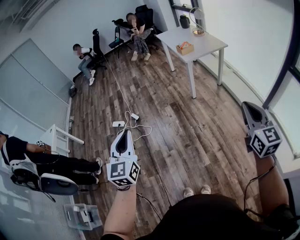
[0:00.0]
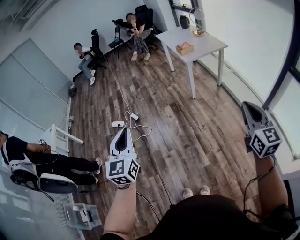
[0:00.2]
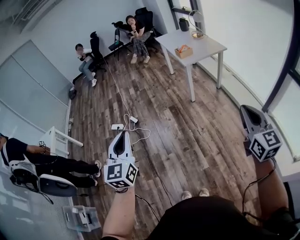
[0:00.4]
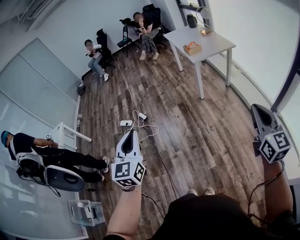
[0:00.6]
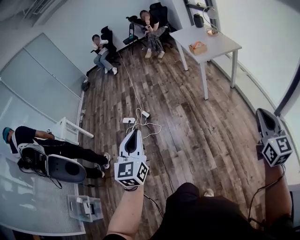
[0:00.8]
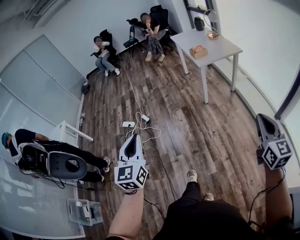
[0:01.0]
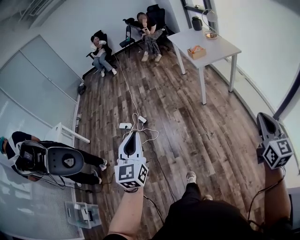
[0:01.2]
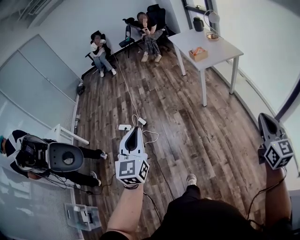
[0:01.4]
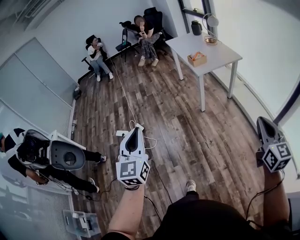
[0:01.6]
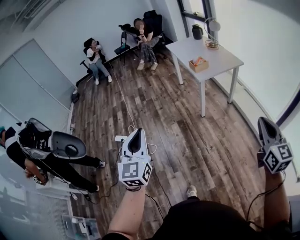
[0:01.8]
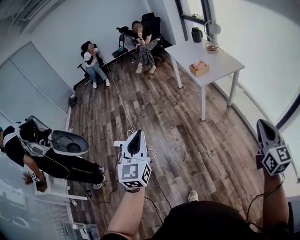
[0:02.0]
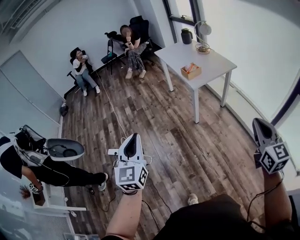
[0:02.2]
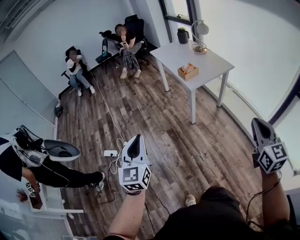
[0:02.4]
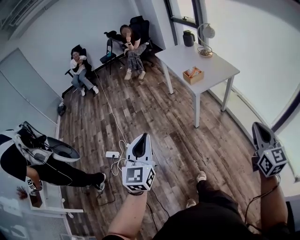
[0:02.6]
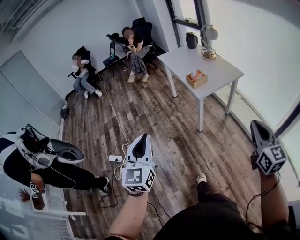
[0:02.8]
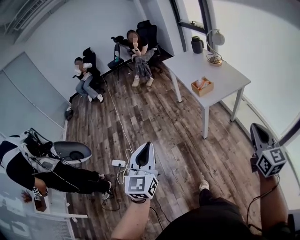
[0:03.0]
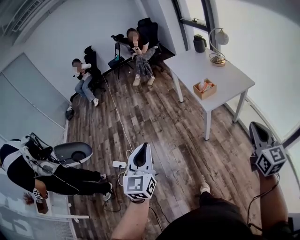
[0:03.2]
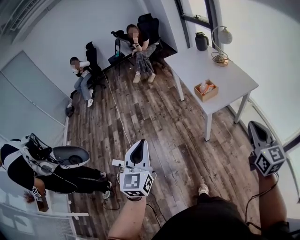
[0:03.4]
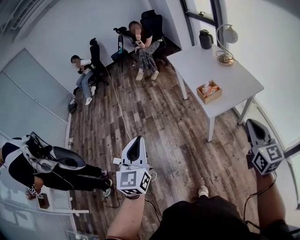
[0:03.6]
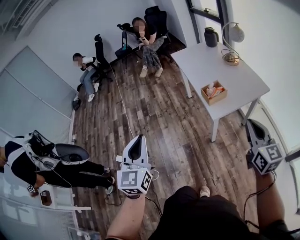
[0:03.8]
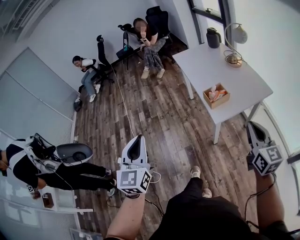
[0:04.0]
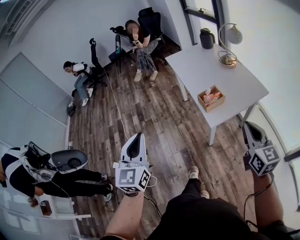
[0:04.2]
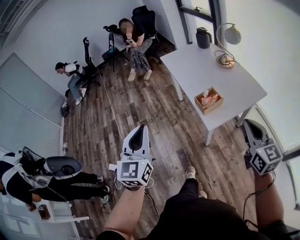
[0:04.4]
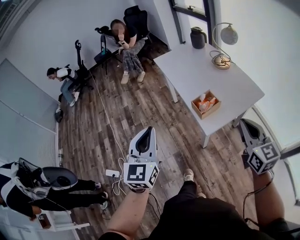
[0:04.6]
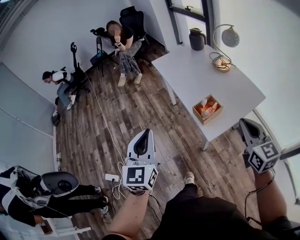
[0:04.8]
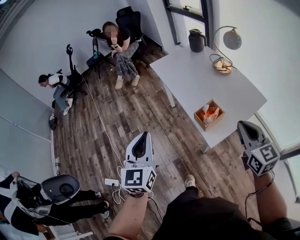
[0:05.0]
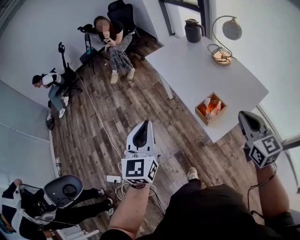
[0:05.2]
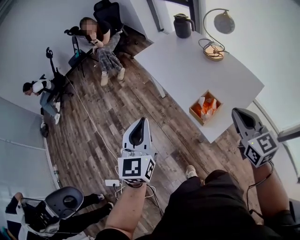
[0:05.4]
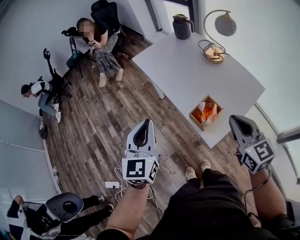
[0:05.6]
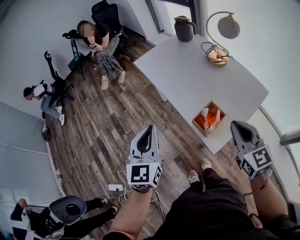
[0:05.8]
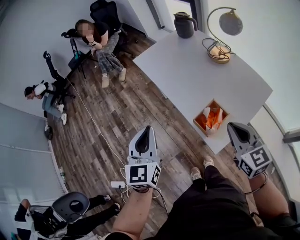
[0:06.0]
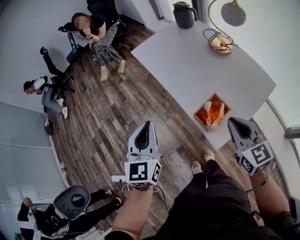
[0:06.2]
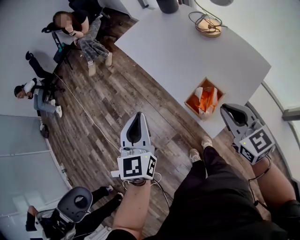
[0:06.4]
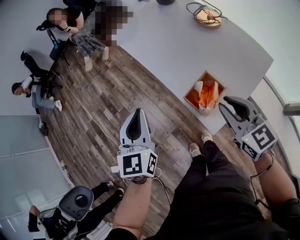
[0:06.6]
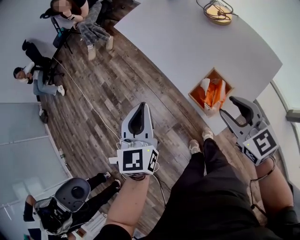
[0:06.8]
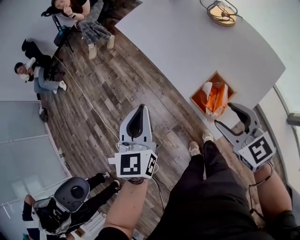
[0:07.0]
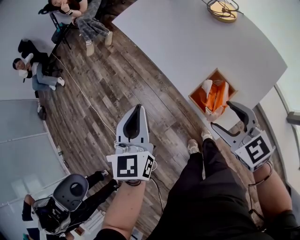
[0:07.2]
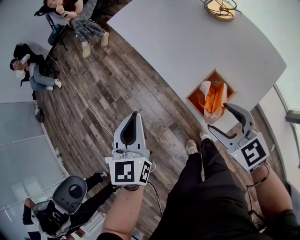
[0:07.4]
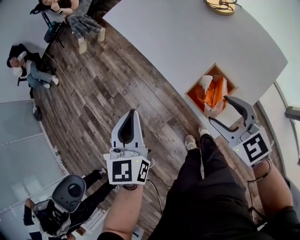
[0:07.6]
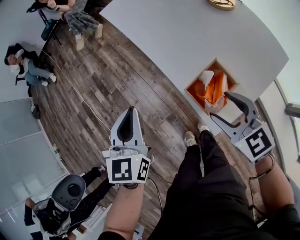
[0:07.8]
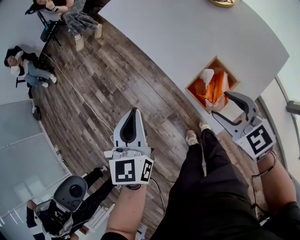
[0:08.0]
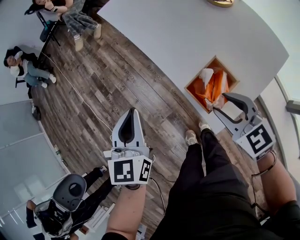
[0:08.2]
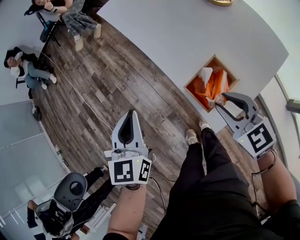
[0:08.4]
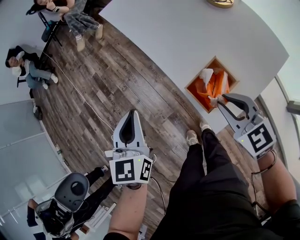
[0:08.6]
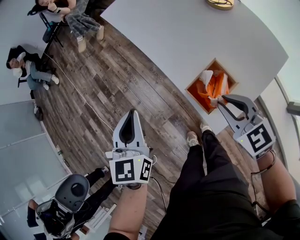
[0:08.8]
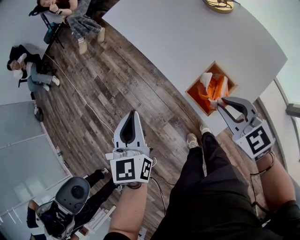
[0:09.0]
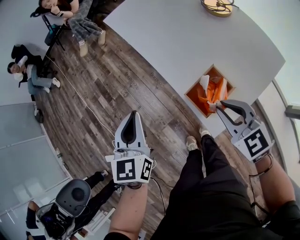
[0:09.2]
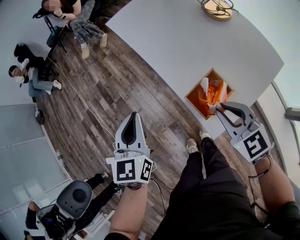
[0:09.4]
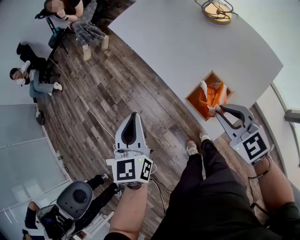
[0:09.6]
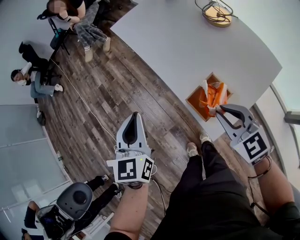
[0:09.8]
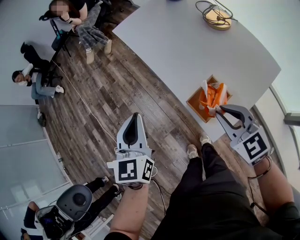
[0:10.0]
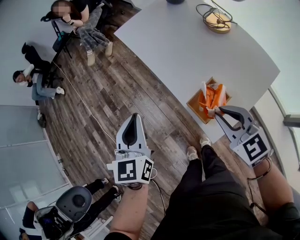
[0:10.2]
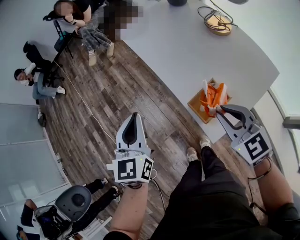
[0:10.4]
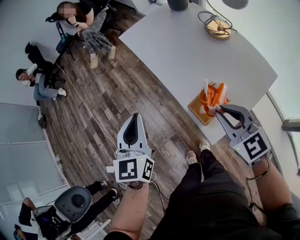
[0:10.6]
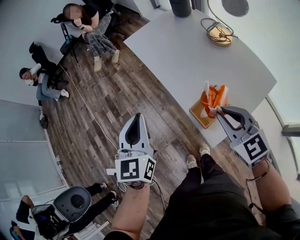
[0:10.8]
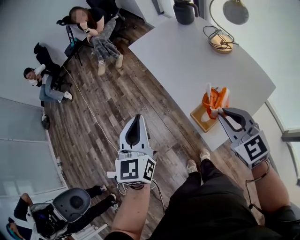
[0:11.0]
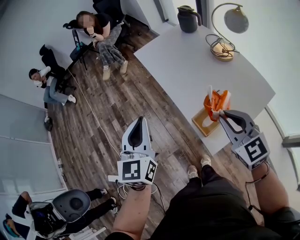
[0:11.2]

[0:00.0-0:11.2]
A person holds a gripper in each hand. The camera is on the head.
0:00.0 to 0:01.6: Both grippers travel together forward, about 15 cm.
0:01.6 to 0:03.2: The two grippers go some 35 cm forward.
0:03.2 to 0:04.8: Both grippers move forward, about 35 cm.
0:04.8 to 0:06.4: Both grippers move forward and downward, about 20 cm.
0:06.4 to 0:08.0: The grippers both shift downward by about 10 cm. The right gripper opens its fingers.
0:08.0 to 0:09.6: The right gripper closes its fingers.
0:09.6 to 0:11.2: The grippers both shift upward by about 15 cm.

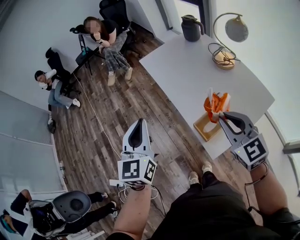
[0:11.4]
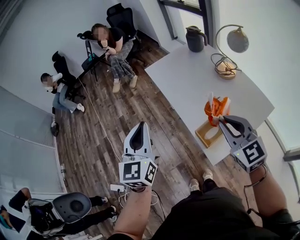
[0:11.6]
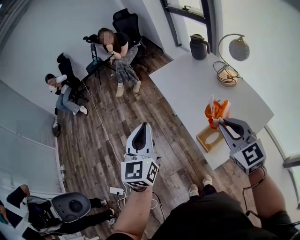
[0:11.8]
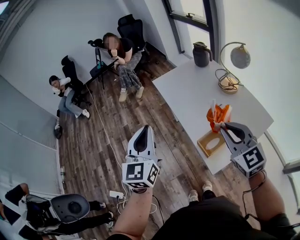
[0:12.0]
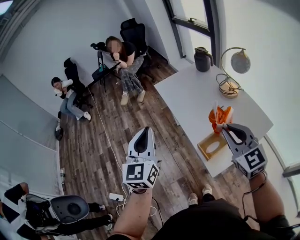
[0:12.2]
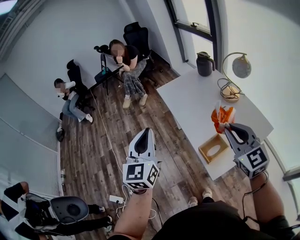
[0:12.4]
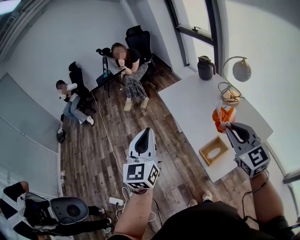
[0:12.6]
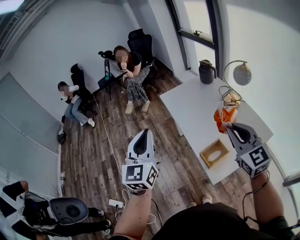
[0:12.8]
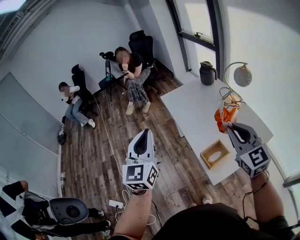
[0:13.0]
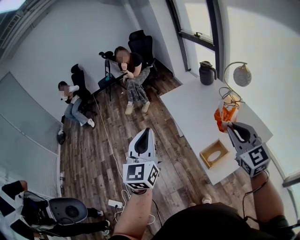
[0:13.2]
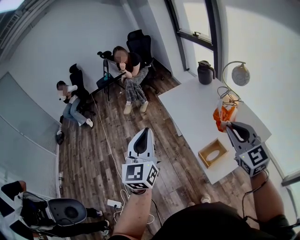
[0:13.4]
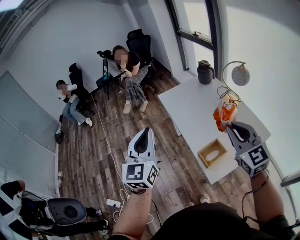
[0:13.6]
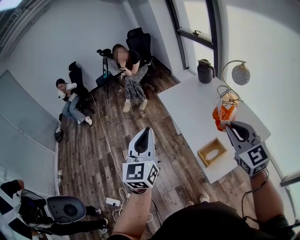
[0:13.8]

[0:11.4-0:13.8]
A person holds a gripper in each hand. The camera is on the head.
0:11.4 to 0:12.6: Both grippers move upward, about 10 cm.
0:12.6 to 0:13.8: The grippers stay close to where they were, moving slightly.

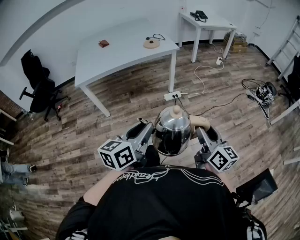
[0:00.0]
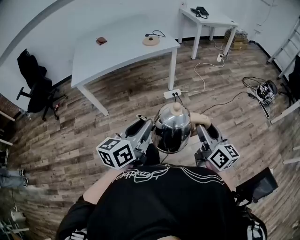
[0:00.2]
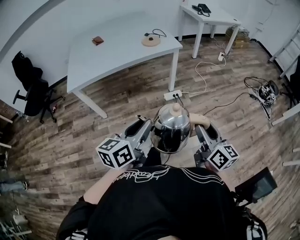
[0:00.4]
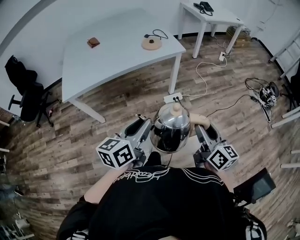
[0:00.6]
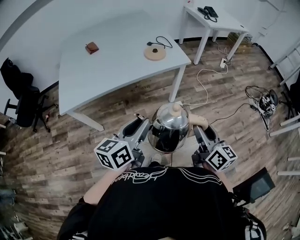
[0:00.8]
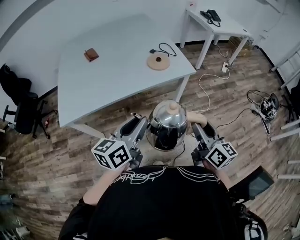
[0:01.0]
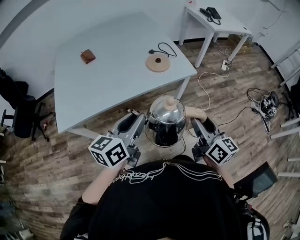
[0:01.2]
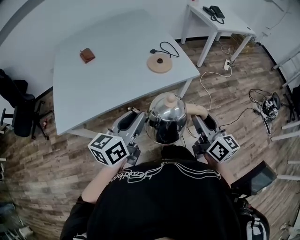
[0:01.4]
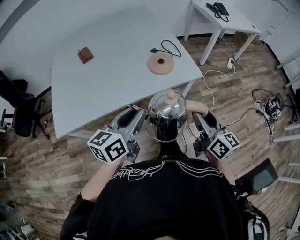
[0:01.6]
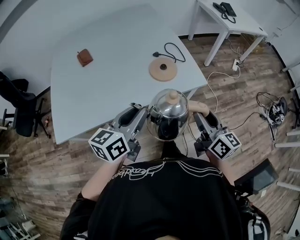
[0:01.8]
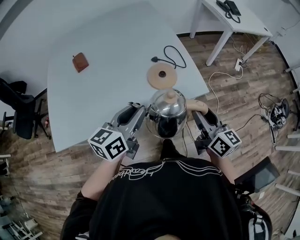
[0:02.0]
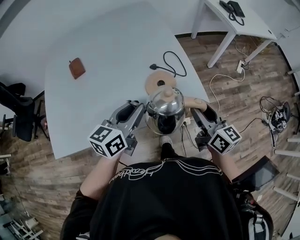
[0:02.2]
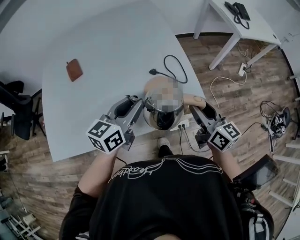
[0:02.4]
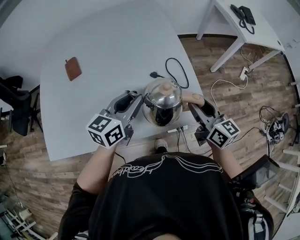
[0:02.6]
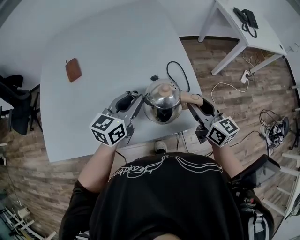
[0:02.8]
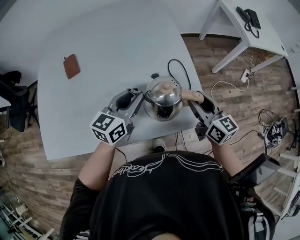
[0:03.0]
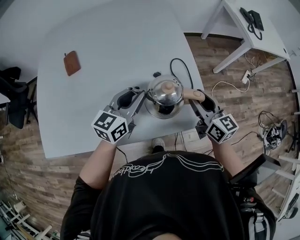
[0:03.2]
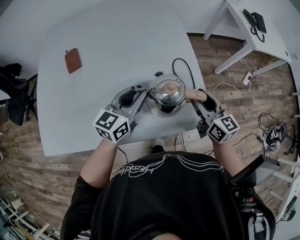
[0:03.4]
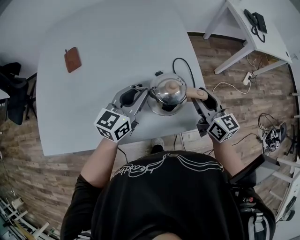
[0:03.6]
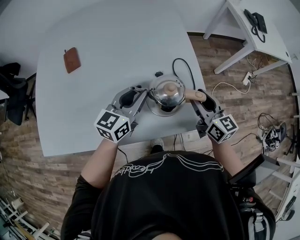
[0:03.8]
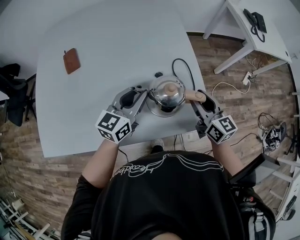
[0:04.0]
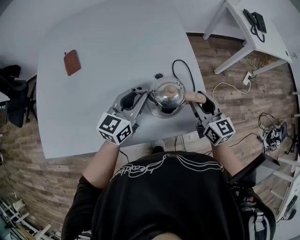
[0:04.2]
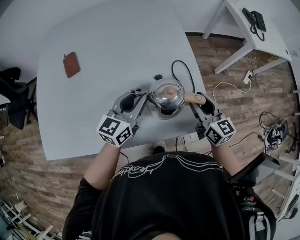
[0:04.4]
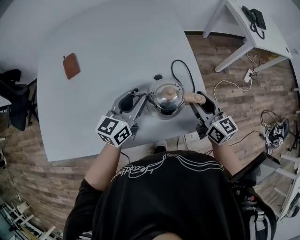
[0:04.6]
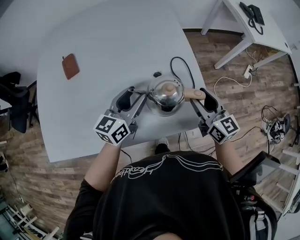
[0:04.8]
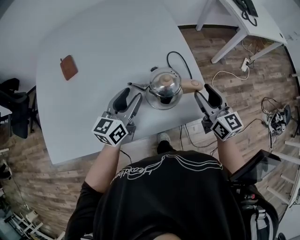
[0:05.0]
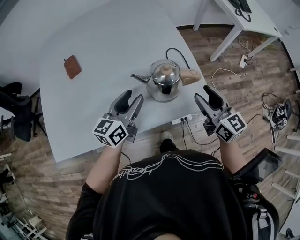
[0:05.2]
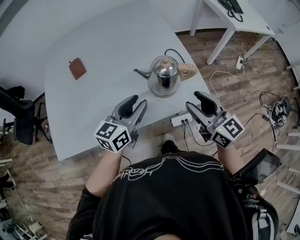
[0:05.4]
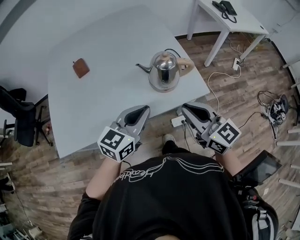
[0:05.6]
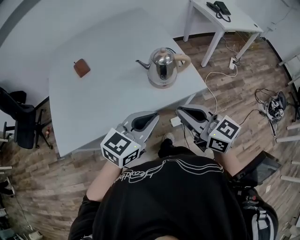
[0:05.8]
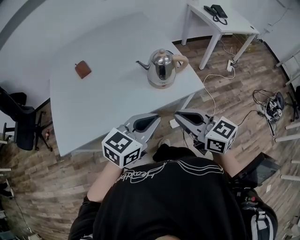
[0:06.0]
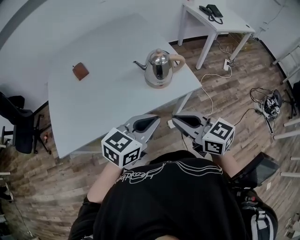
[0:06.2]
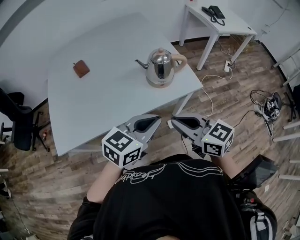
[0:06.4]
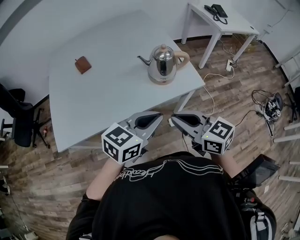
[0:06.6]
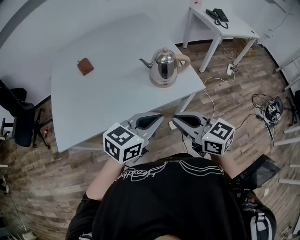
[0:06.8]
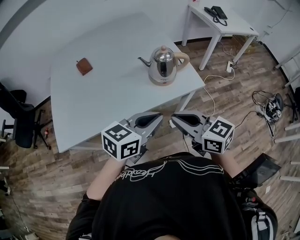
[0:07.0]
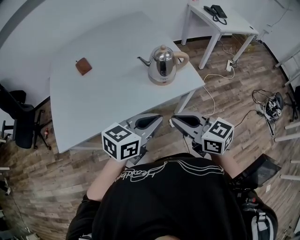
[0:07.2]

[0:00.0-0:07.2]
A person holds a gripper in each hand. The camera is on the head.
0:00.0 to 0:01.4: The two grippers travel together, forward, approximately 50 cm.
0:01.4 to 0:02.8: Both grippers move forward, some 35 cm. The right gripper turns by some 20 degrees.
0:02.8 to 0:04.4: The right gripper moves approximately 5 cm.
0:04.4 to 0:05.8: The right gripper heads backward, upward and to the left, covering some 30 cm, and closes. Meanwhile the left gripper goes approximately 25 cm backward, turns by roughly 30 degrees, and closes its fingers.
0:05.8 to 0:07.2: The right gripper shifts some 5 cm backward.

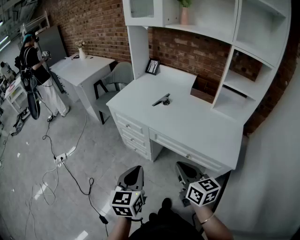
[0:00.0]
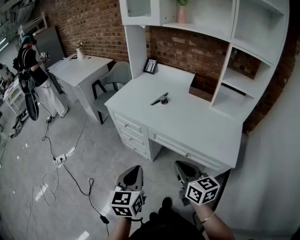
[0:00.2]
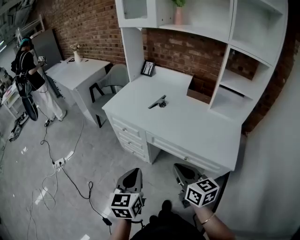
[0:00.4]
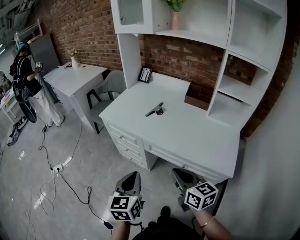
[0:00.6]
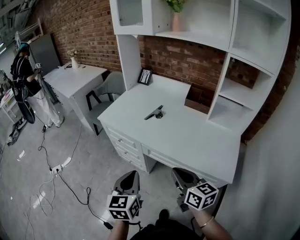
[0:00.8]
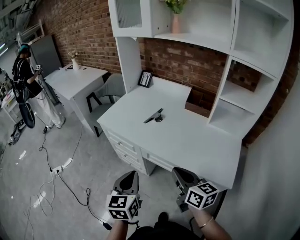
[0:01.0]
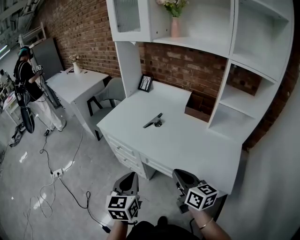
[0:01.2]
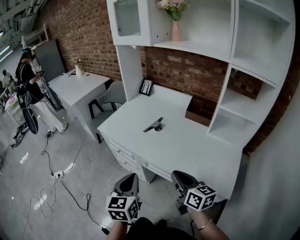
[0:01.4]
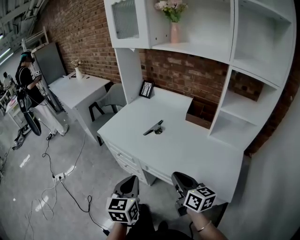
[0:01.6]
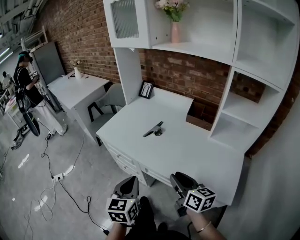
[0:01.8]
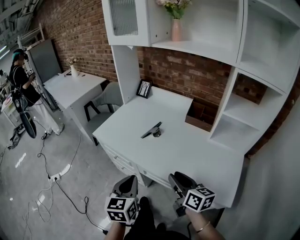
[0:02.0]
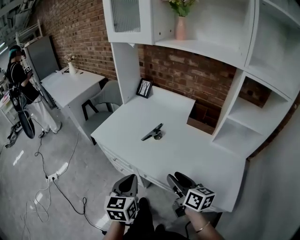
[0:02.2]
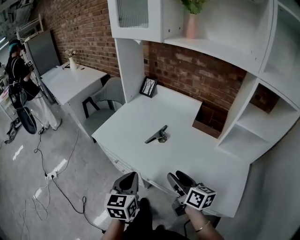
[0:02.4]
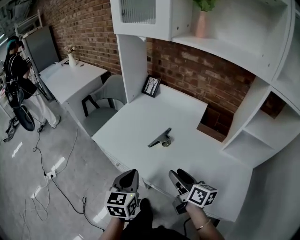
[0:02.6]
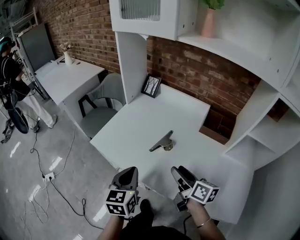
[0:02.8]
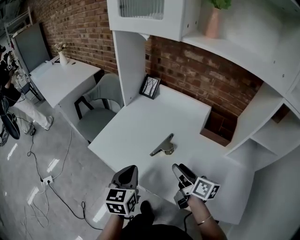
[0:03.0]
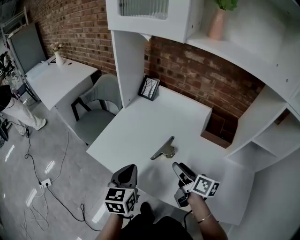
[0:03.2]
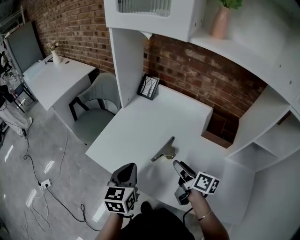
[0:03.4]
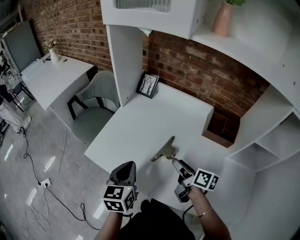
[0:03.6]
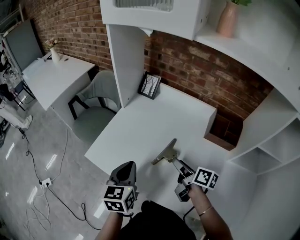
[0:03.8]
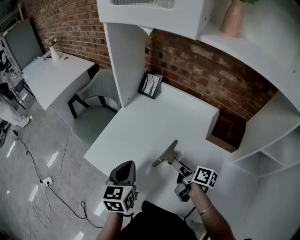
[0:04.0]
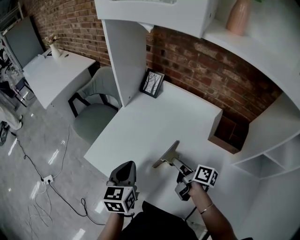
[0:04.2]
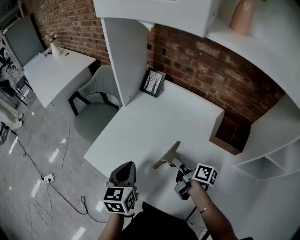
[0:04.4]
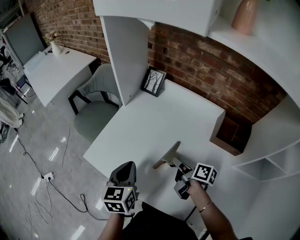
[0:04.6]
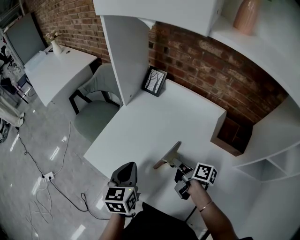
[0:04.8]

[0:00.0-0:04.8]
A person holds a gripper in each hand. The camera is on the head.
0:00.0 to 0:01.6: The two grippers go approximately 15 cm forward and to the right.
0:01.6 to 0:03.2: Both grippers move forward, some 30 cm. The right gripper rotates approximately 20 degrees, and opens.
0:03.2 to 0:04.8: The right gripper moves forward and downward, about 15 cm, swivels approximately 20 degrees, and closes up, while the left gripper heads forward, covering about 10 cm.
